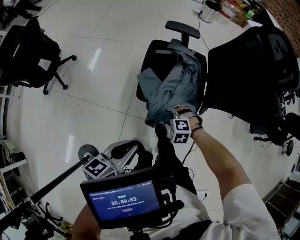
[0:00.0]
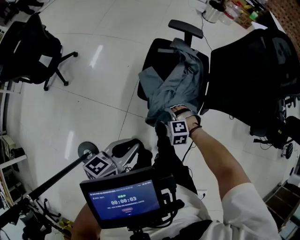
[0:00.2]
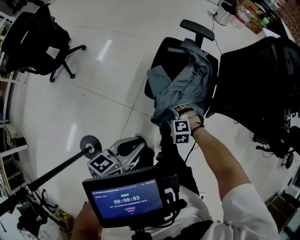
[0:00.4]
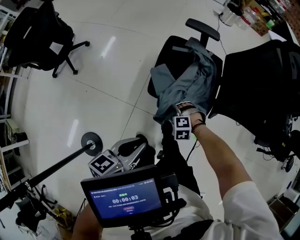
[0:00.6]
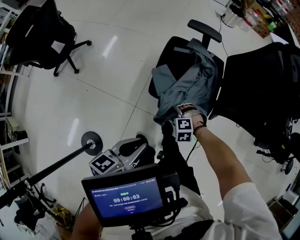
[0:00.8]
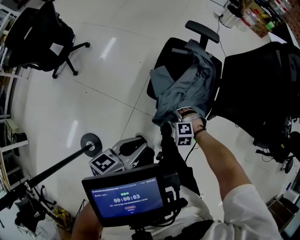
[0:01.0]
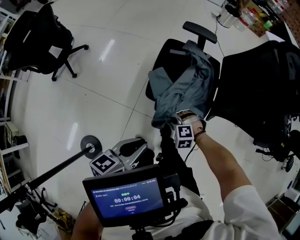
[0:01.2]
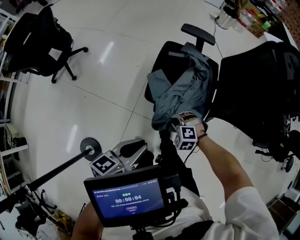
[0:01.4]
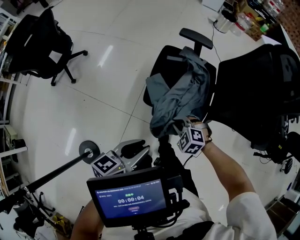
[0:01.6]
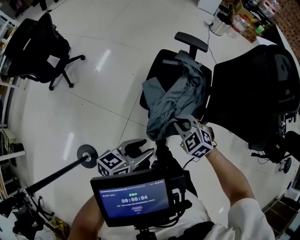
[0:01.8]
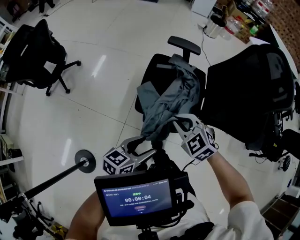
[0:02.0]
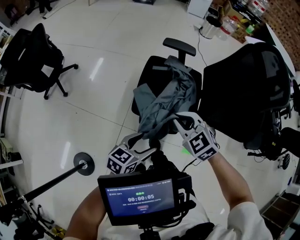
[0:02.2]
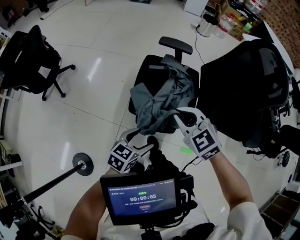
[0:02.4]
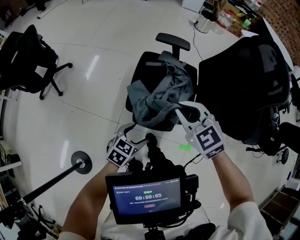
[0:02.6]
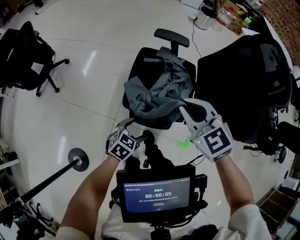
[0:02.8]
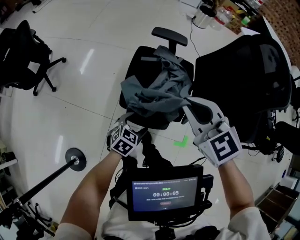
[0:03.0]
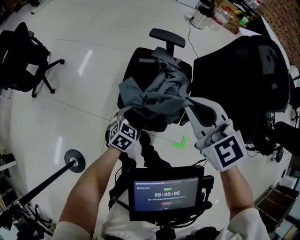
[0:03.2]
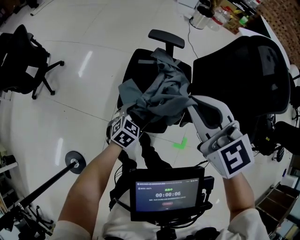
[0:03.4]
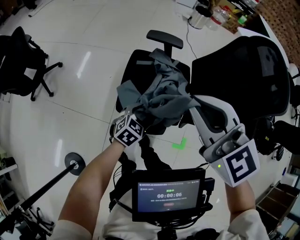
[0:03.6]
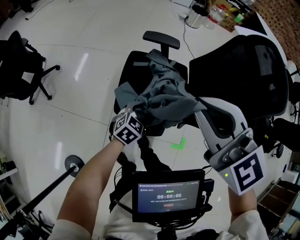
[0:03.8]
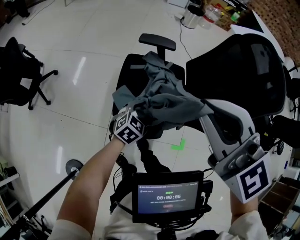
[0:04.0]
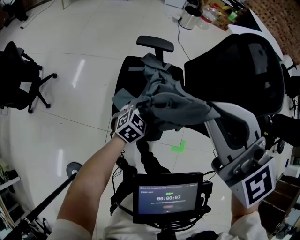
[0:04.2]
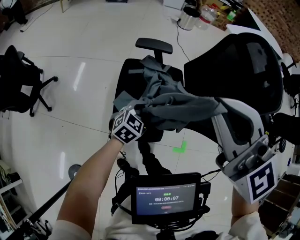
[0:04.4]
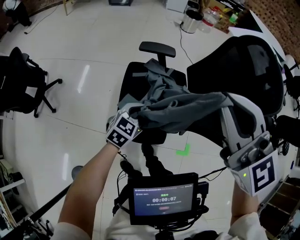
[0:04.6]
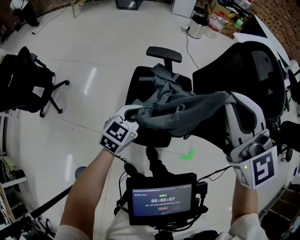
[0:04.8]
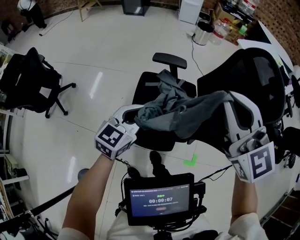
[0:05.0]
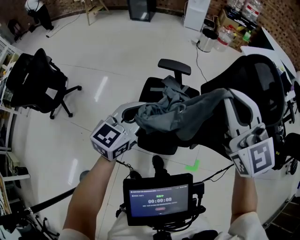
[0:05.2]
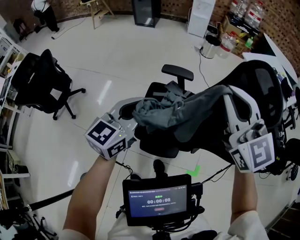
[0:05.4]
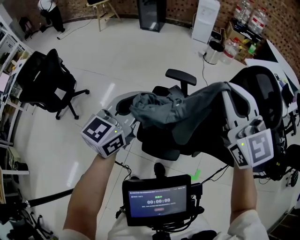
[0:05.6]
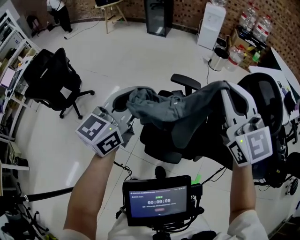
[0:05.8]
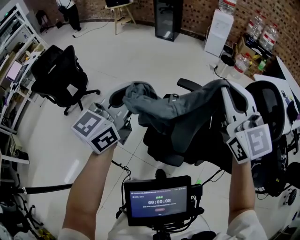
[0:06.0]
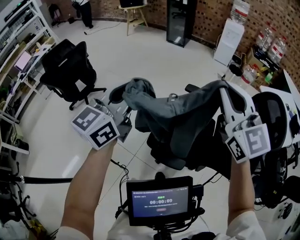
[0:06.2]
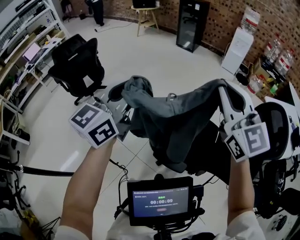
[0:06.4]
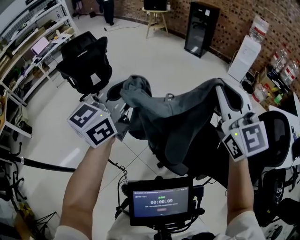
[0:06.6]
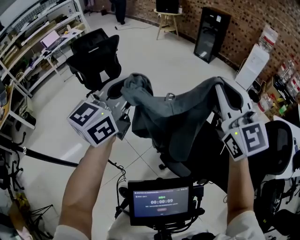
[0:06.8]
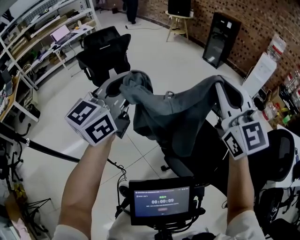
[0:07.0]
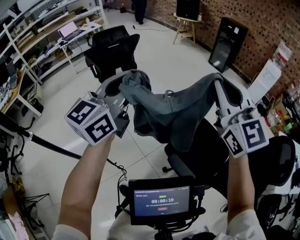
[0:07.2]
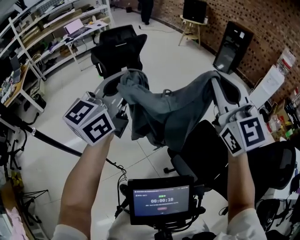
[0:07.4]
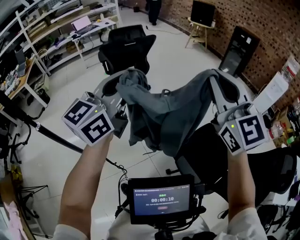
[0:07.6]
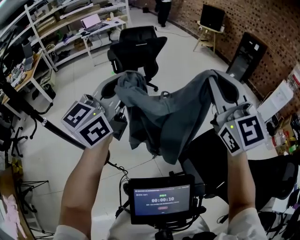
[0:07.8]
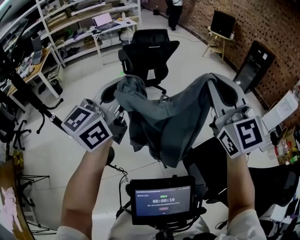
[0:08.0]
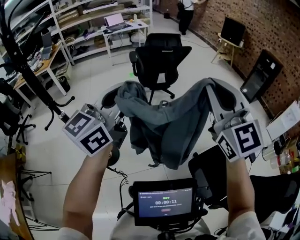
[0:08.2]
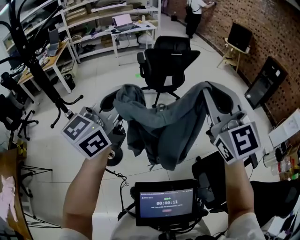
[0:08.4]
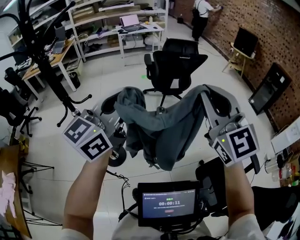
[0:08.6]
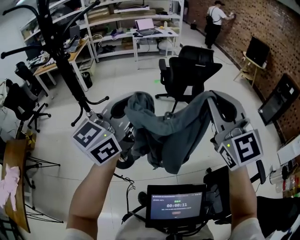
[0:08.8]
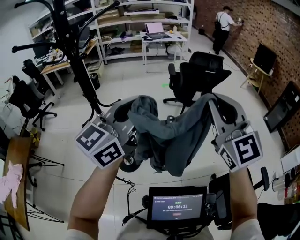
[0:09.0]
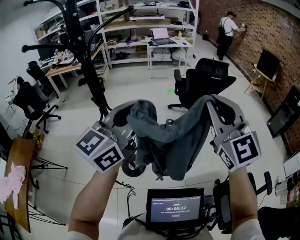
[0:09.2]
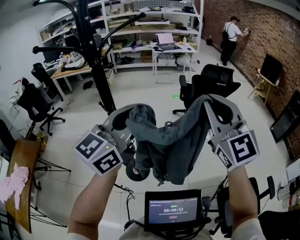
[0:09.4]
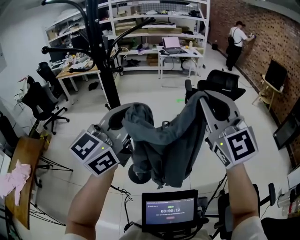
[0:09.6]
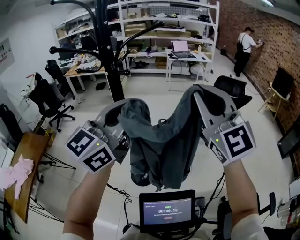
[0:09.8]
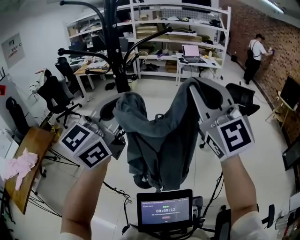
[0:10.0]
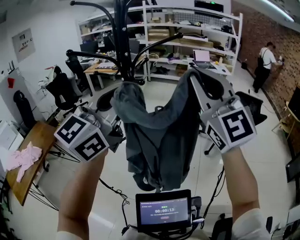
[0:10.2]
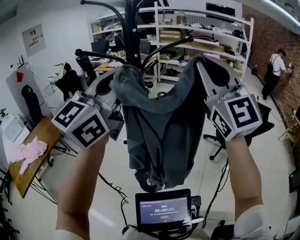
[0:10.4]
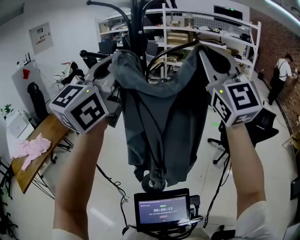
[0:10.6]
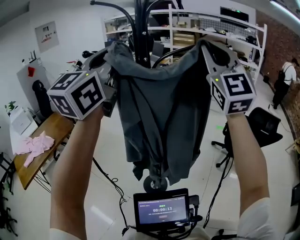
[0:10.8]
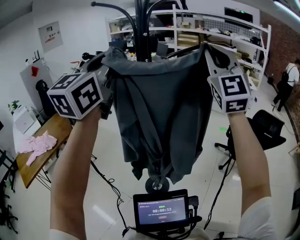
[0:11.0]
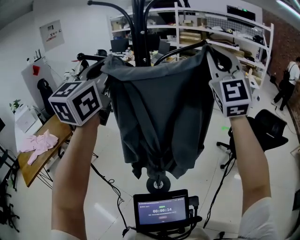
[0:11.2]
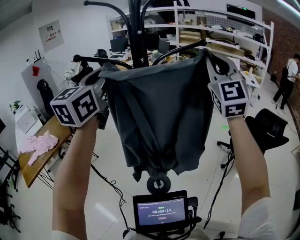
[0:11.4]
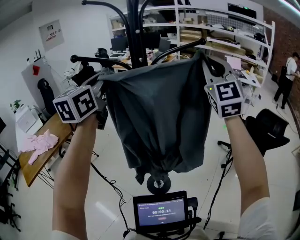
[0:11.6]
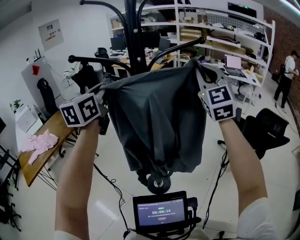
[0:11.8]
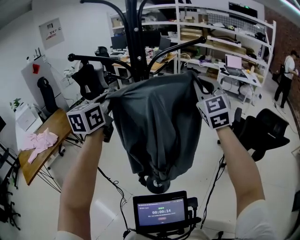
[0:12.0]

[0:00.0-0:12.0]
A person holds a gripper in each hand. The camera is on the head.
0:00.0 to 0:01.6: The right gripper is displaced upward by about 5 cm, and closes up.
0:01.6 to 0:03.0: The left gripper travels downward, forward and to the right by approximately 20 cm, turns by some 40 degrees, and opens. The right gripper goes some 25 cm upward, and tilts its fingers approximately 30 degrees upward.
0:03.0 to 0:04.4: The right gripper is displaced upward by about 15 cm, while the left gripper heads forward, upward and to the right, covering roughly 15 cm, and closes its fingers.
0:04.4 to 0:06.0: The right gripper shifts about 10 cm forward and upward, while the left gripper heads upward and to the left, covering some 40 cm, and tilts its fingers roughly 40 degrees upward.
0:06.0 to 0:07.6: The right gripper shifts by about 30 cm, and rotates roughly 40 degrees, while the left gripper moves approximately 30 cm, and turns by roughly 30 degrees.
0:07.6 to 0:09.0: The two grippers go roughly 35 cm to the left. The left gripper changes its angle by some 20 degrees. Meanwhile the right gripper rotates some 30 degrees.
0:09.0 to 0:10.4: The left gripper changes place by about 25 cm, and turns by roughly 40 degrees. The right gripper changes place by approximately 30 cm, and changes its angle by roughly 30 degrees.
0:10.4 to 0:12.0: The right gripper shifts approximately 25 cm forward and downward, and changes its angle by some 20 degrees, while the left gripper shifts roughly 25 cm forward, downward and to the left, and swivels approximately 40 degrees.

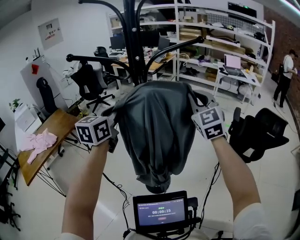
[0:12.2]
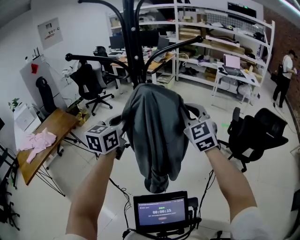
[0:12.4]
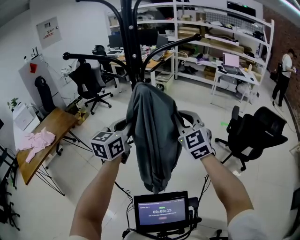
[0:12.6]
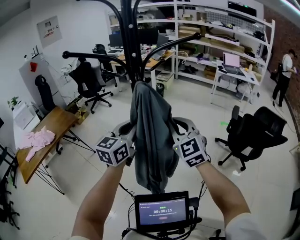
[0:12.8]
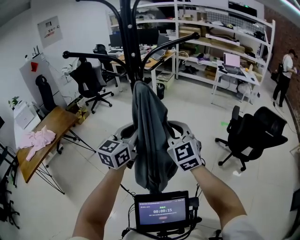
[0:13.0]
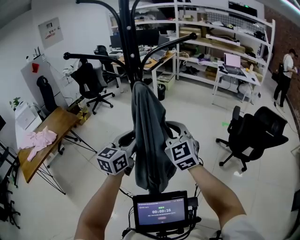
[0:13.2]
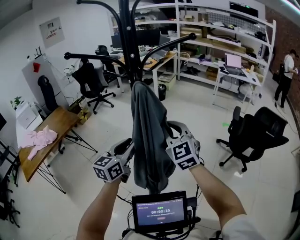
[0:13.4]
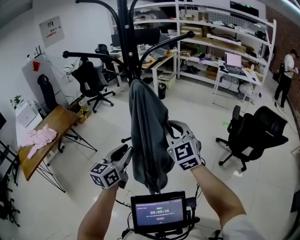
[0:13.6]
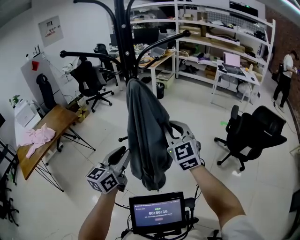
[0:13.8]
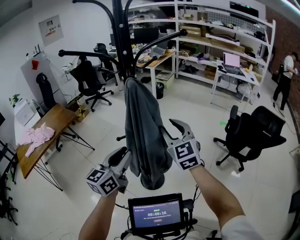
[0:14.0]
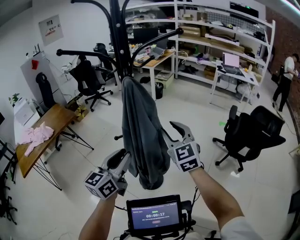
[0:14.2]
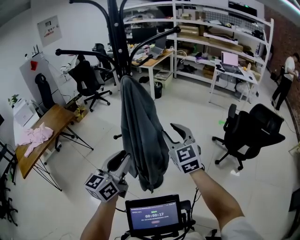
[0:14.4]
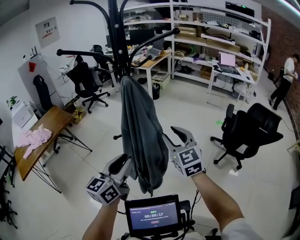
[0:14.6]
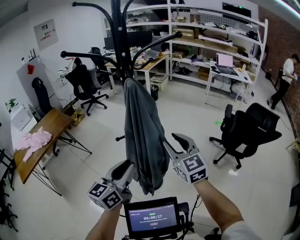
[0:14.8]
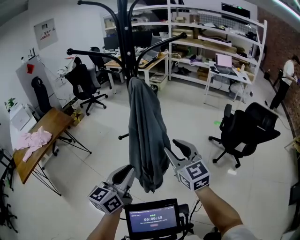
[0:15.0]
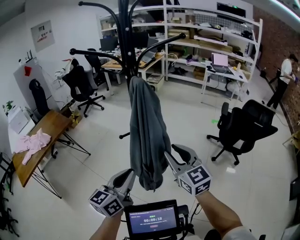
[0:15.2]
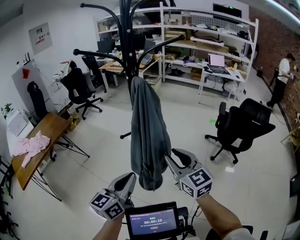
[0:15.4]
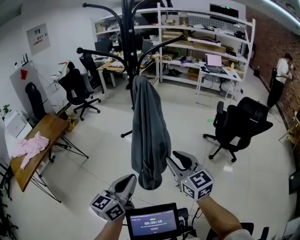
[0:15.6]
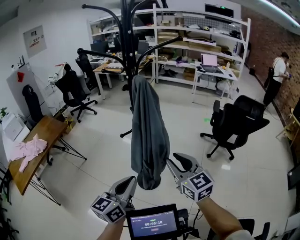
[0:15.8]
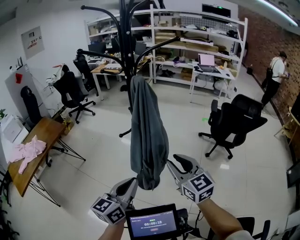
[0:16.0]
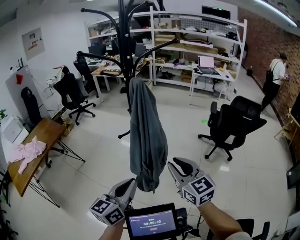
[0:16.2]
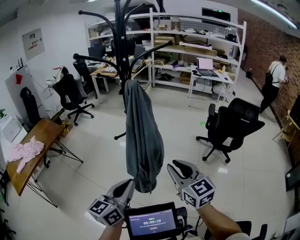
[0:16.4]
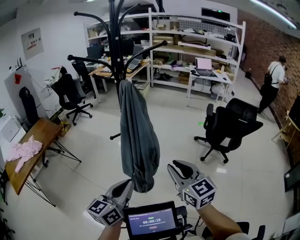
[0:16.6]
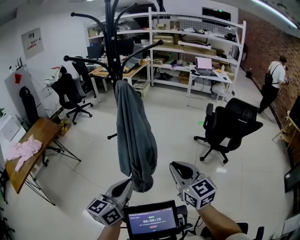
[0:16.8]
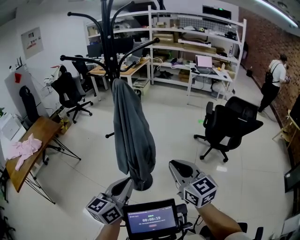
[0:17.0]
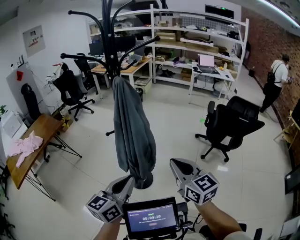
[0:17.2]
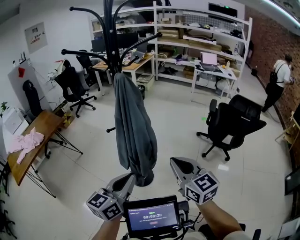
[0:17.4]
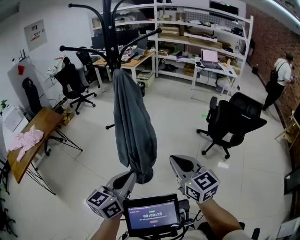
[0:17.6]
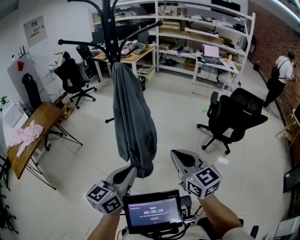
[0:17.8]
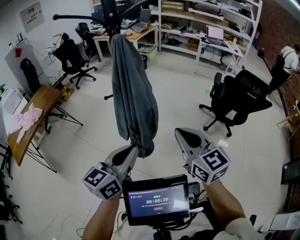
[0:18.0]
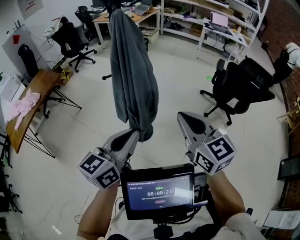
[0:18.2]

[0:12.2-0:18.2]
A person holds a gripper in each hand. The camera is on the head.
0:12.2 to 0:13.8: The left gripper moves backward and downward, some 20 cm, while the right gripper shifts some 15 cm downward, backward and to the left.
0:13.8 to 0:15.2: Both grippers move backward, roughly 15 cm.
0:15.2 to 0:16.6: Both grippers move backward, about 10 cm.
0:16.6 to 0:18.2: The left gripper travels to the right by approximately 5 cm.

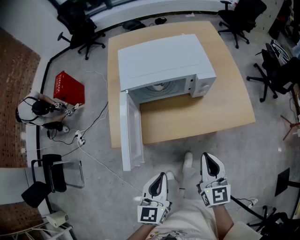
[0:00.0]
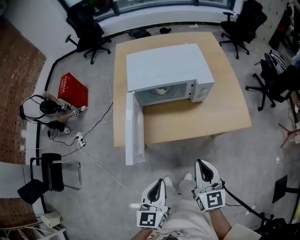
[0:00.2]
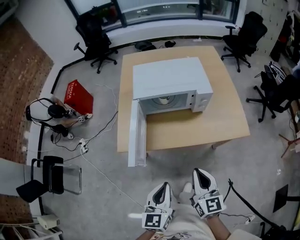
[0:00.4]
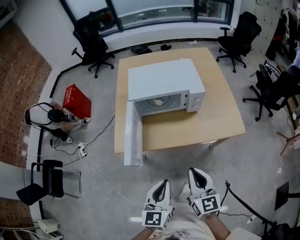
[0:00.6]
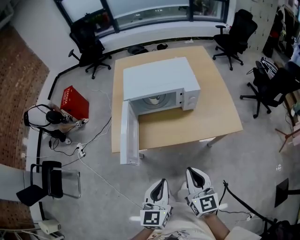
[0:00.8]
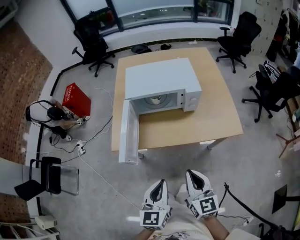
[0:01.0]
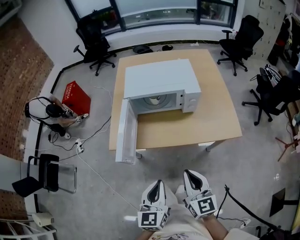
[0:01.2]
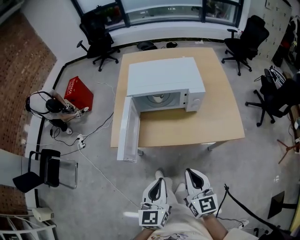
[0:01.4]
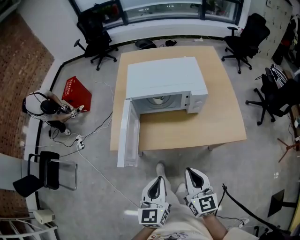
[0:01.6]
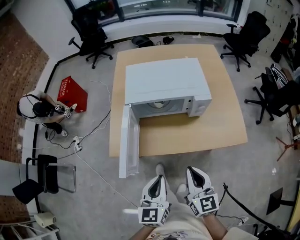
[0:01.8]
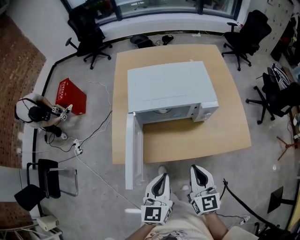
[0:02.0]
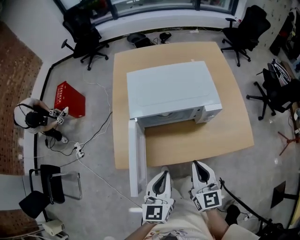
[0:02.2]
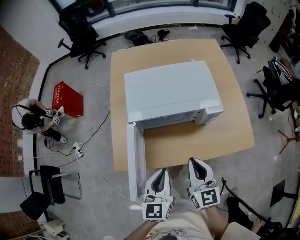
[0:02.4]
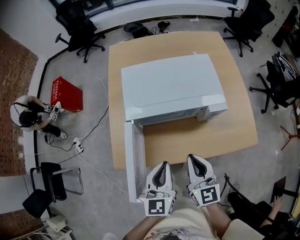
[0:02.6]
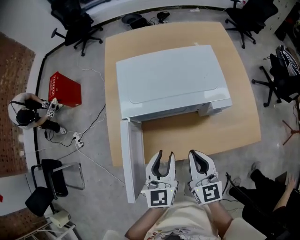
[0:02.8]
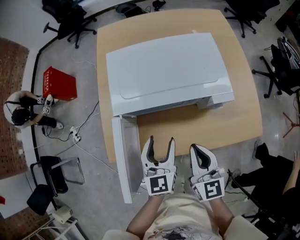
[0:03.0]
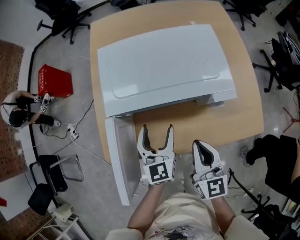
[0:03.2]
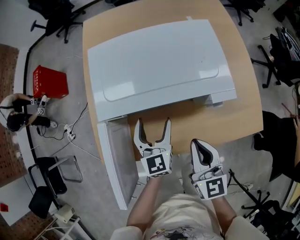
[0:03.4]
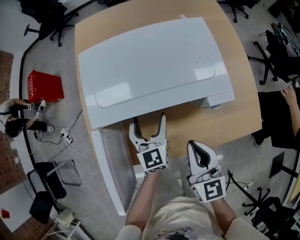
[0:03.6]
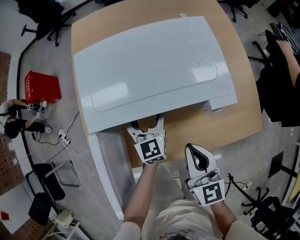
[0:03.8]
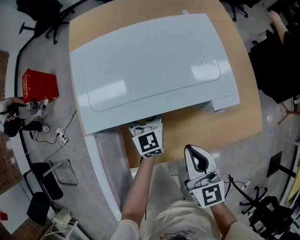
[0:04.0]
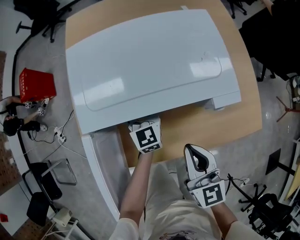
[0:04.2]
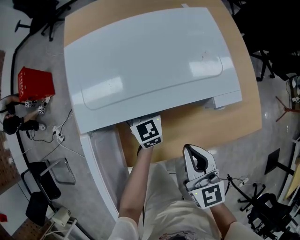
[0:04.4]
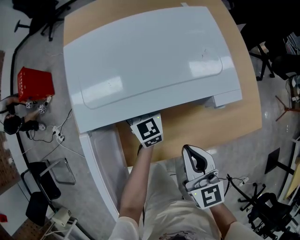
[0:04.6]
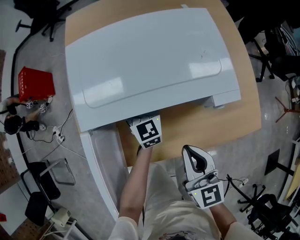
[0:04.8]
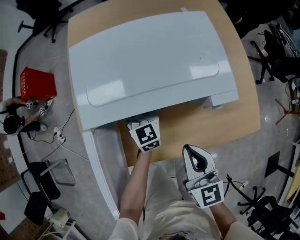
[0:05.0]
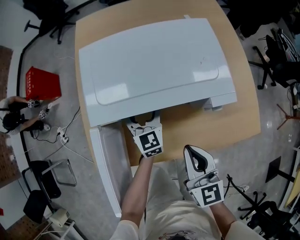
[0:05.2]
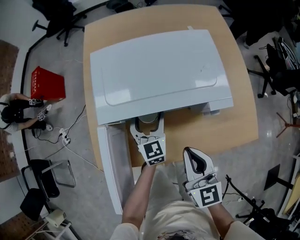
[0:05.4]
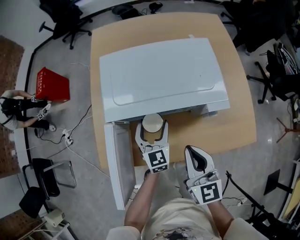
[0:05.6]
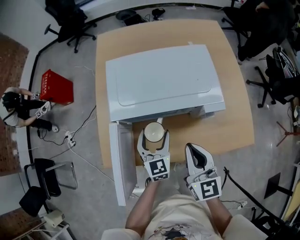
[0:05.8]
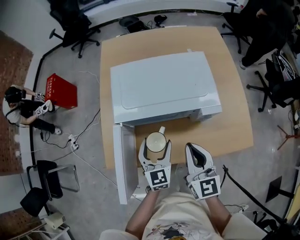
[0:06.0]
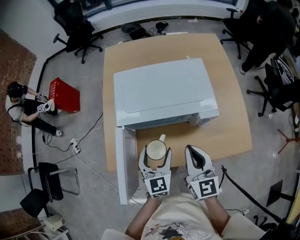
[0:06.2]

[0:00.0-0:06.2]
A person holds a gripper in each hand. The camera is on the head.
0:00.0 to 0:01.6: The right gripper shifts some 5 cm backward.
0:01.6 to 0:03.2: Both grippers travel together forward, about 30 cm. The left gripper opens.
0:03.2 to 0:04.6: The left gripper travels forward and downward by some 20 cm.
0:04.6 to 0:06.2: The left gripper shifts approximately 25 cm backward and upward, while the right gripper heads upward, covering about 10 cm.
